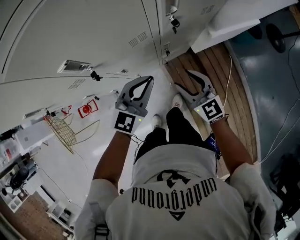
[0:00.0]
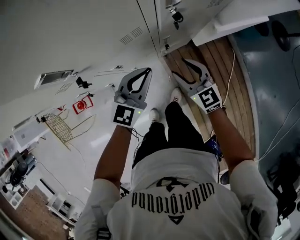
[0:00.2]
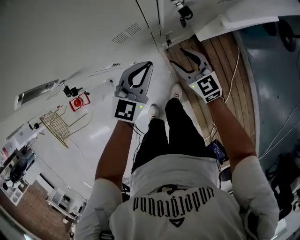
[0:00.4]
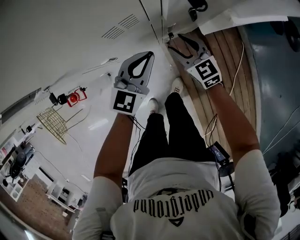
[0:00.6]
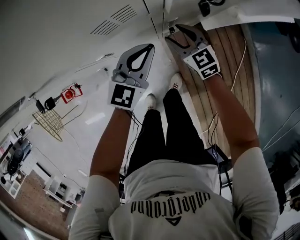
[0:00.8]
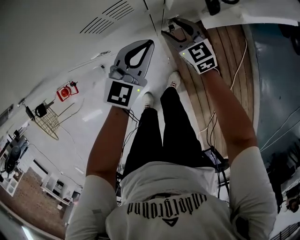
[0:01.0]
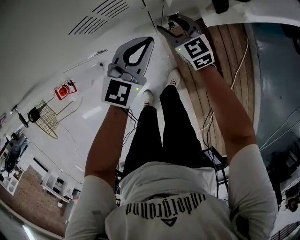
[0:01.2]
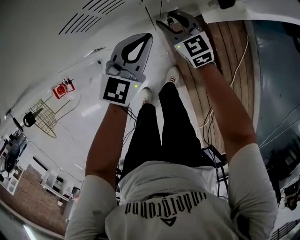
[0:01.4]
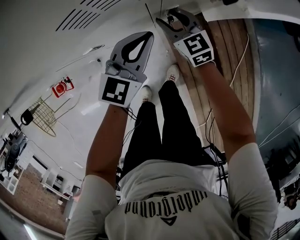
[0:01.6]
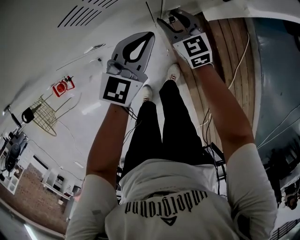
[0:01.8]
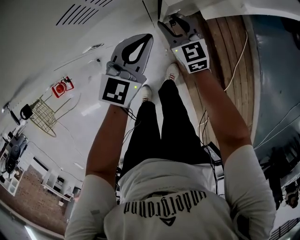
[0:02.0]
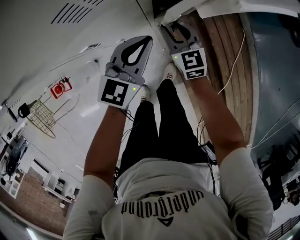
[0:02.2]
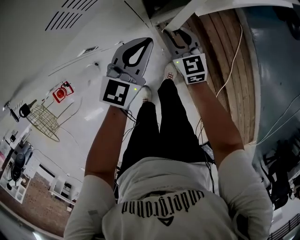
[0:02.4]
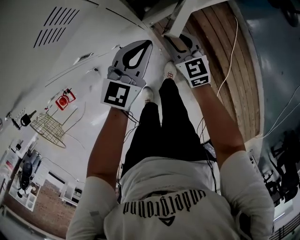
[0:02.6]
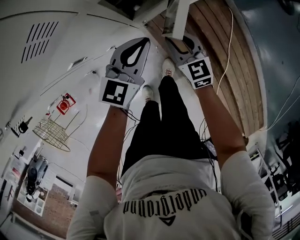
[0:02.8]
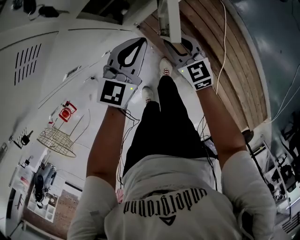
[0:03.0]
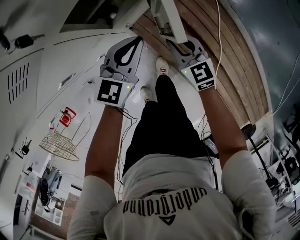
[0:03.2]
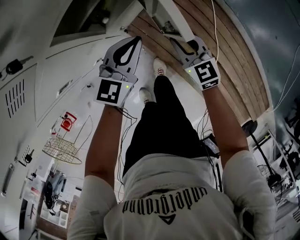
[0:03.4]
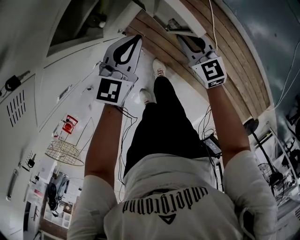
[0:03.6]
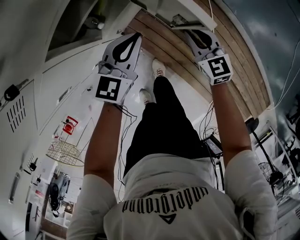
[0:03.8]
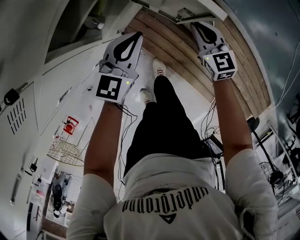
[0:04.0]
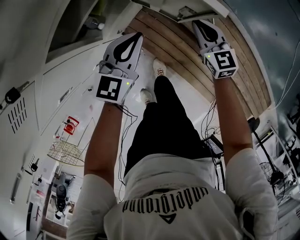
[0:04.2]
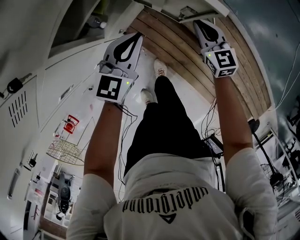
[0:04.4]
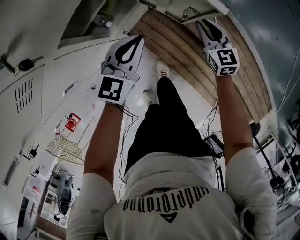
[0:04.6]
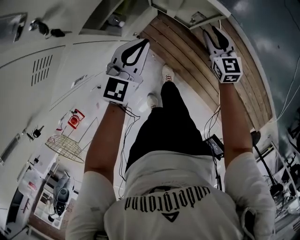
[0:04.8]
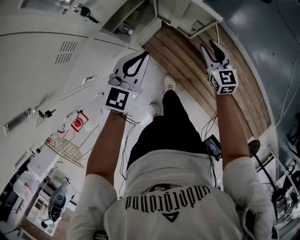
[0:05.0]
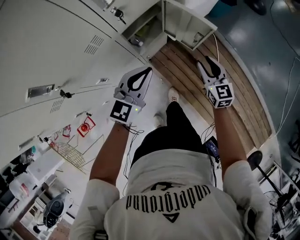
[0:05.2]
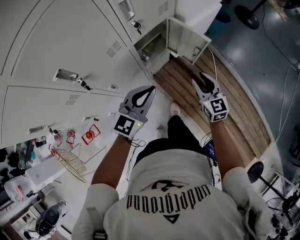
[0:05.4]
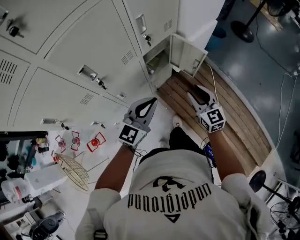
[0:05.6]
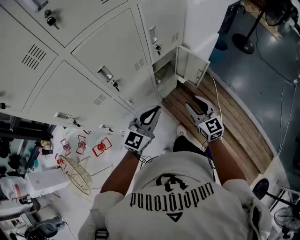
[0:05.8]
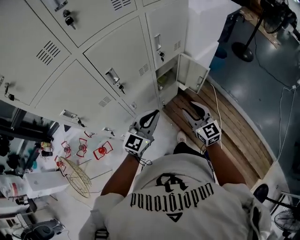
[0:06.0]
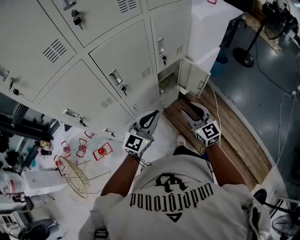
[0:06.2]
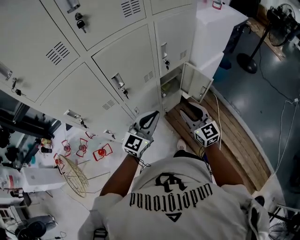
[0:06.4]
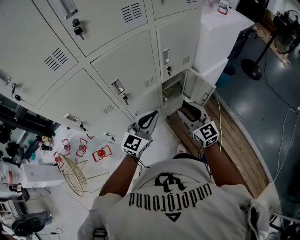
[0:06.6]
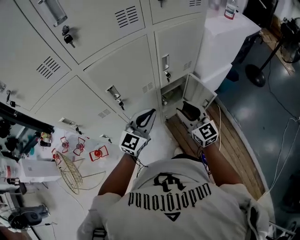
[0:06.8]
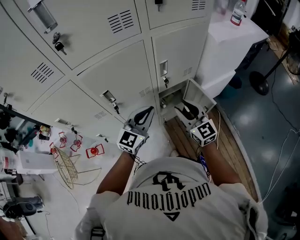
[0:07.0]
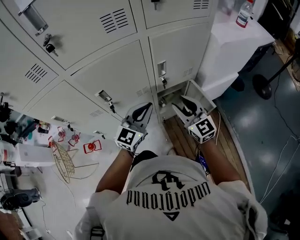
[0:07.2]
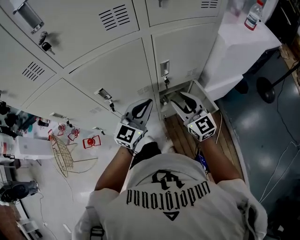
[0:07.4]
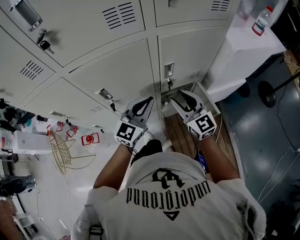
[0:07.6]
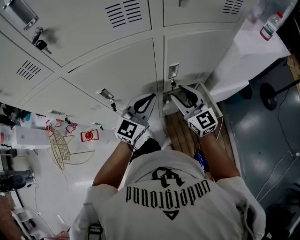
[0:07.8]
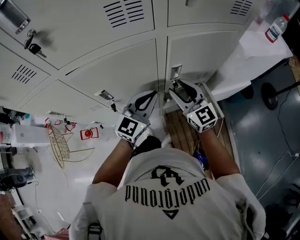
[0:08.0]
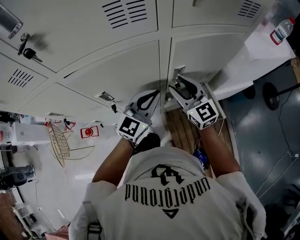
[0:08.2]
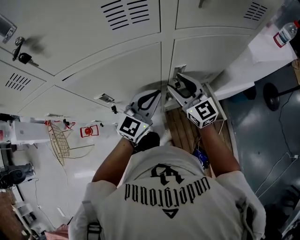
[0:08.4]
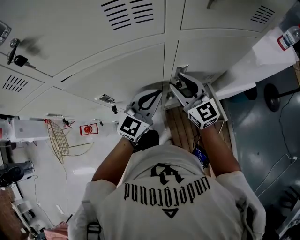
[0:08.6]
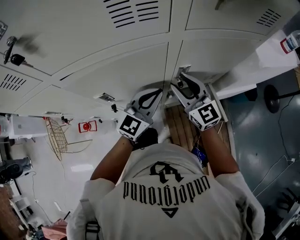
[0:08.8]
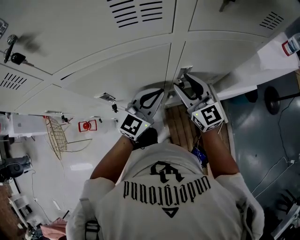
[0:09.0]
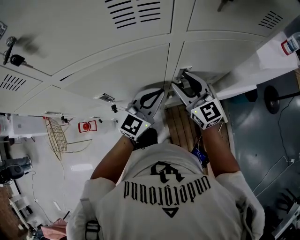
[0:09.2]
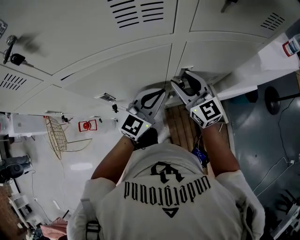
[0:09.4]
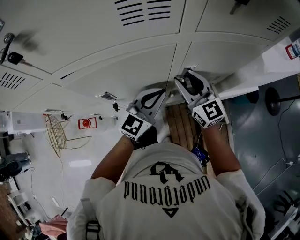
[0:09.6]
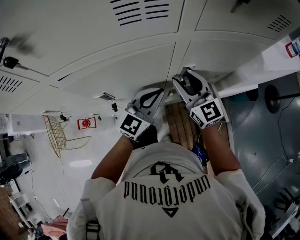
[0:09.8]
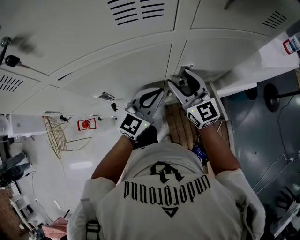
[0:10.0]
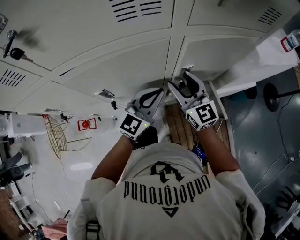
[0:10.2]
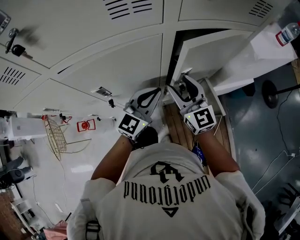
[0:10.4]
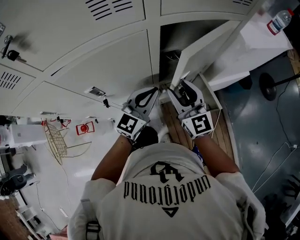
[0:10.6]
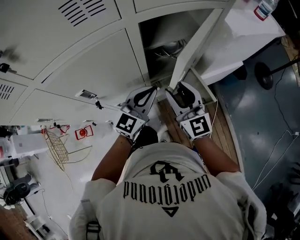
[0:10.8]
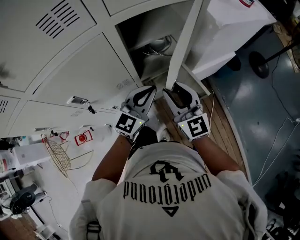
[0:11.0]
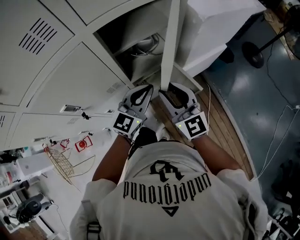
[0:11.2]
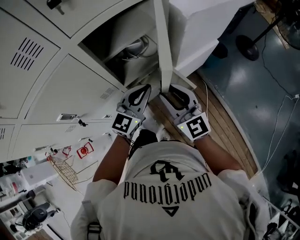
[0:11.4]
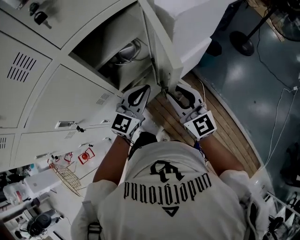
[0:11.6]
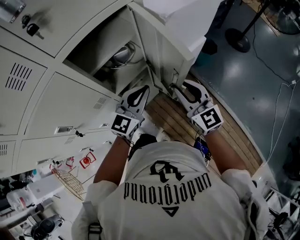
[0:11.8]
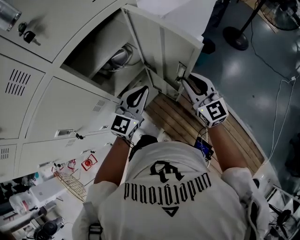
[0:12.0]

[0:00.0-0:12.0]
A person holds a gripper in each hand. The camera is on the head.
0:00.0 to 0:01.6: Both grippers move downward and forward, roughly 25 cm.
0:01.6 to 0:03.0: The left gripper moves to the right, about 15 cm. The right gripper heads to the right and backward, covering approximately 20 cm, and rotates roughly 20 degrees.
0:03.0 to 0:04.4: The left gripper moves to the right and forward, roughly 10 cm. The right gripper heads to the right and forward, covering approximately 20 cm, and closes its fingers.
0:04.4 to 0:06.0: The left gripper heads upward and backward, covering some 50 cm, and changes its angle by approximately 20 degrees, while the right gripper heads upward, backward and to the left, covering about 50 cm, swivels about 20 degrees, and opens up.
0:06.0 to 0:07.6: The two grippers go approximately 25 cm forward. The right gripper swivels some 30 degrees; the left gripper turns by some 20 degrees.
0:07.6 to 0:09.0: Both grippers move forward, about 10 cm.
0:09.0 to 0:10.4: The grippers move only a little.
0:10.4 to 0:12.0: Both grippers move to the right, about 25 cm. The right gripper swivels some 30 degrees, and closes up, while the left gripper swivels approximately 20 degrees.

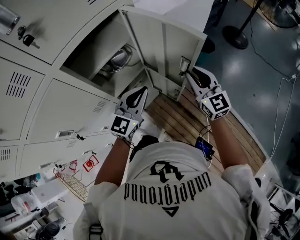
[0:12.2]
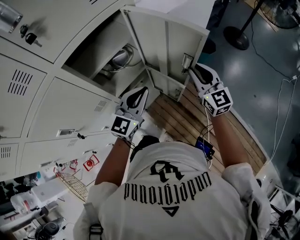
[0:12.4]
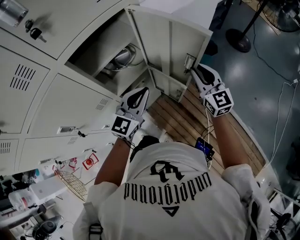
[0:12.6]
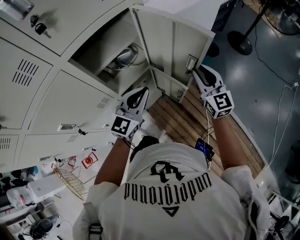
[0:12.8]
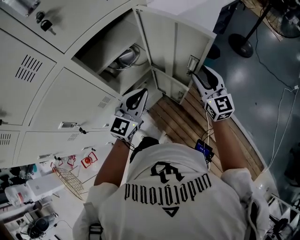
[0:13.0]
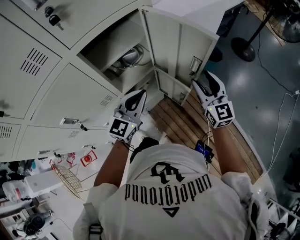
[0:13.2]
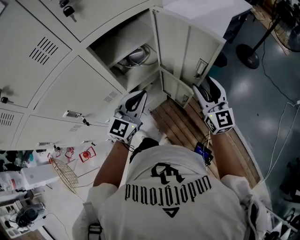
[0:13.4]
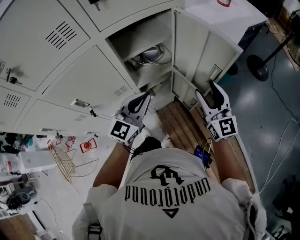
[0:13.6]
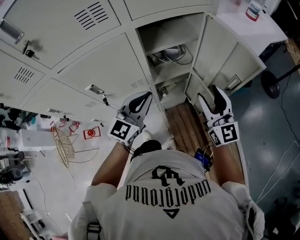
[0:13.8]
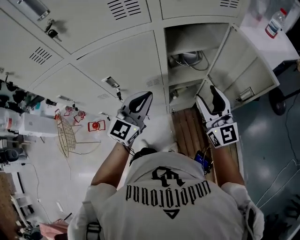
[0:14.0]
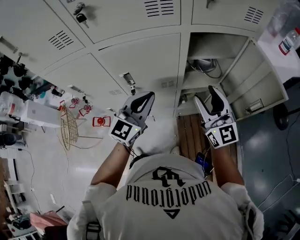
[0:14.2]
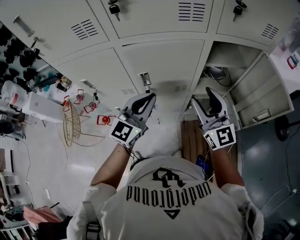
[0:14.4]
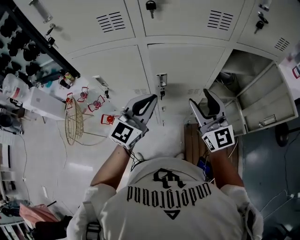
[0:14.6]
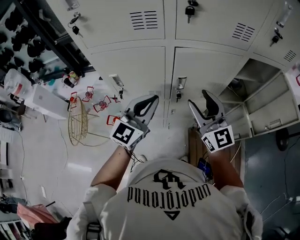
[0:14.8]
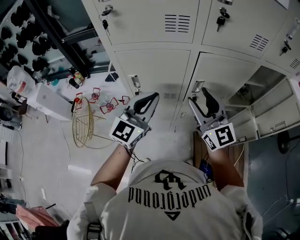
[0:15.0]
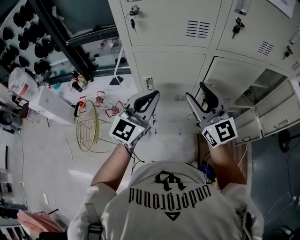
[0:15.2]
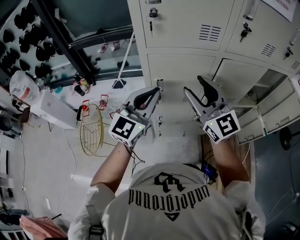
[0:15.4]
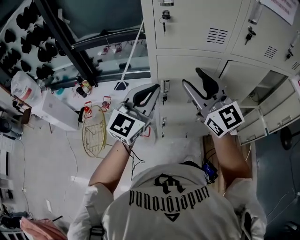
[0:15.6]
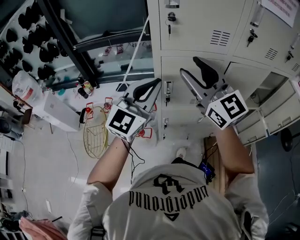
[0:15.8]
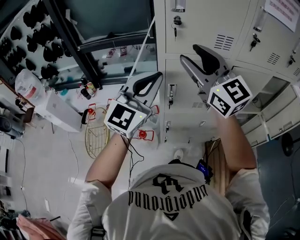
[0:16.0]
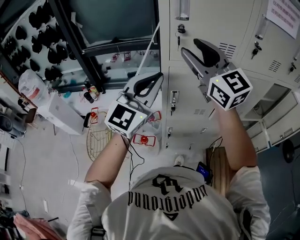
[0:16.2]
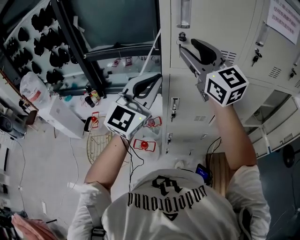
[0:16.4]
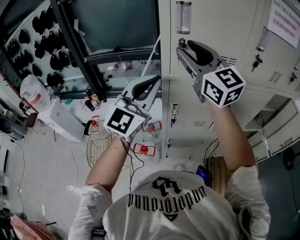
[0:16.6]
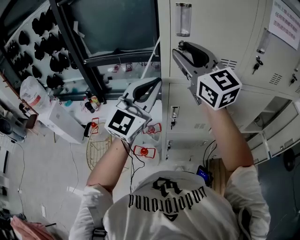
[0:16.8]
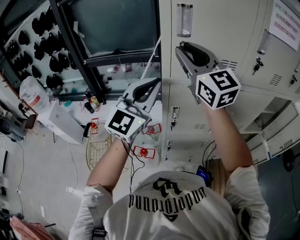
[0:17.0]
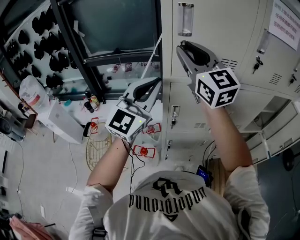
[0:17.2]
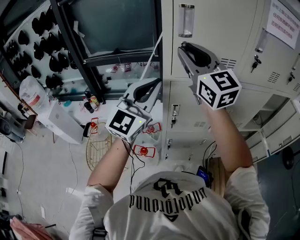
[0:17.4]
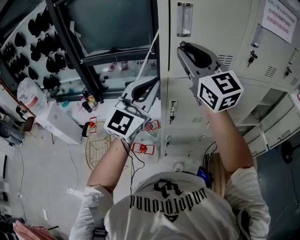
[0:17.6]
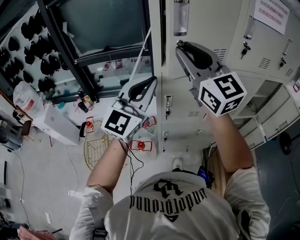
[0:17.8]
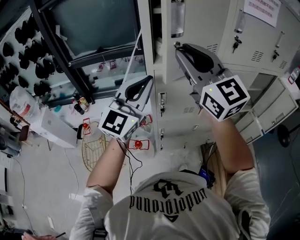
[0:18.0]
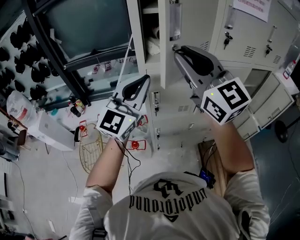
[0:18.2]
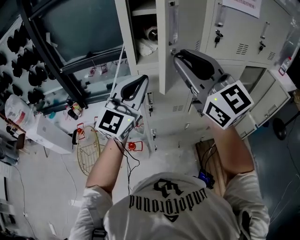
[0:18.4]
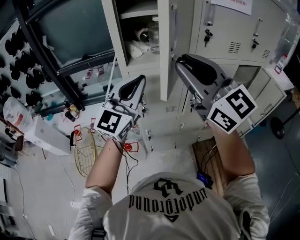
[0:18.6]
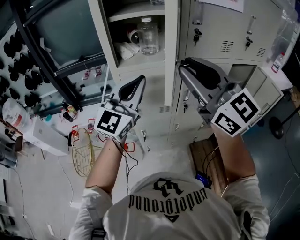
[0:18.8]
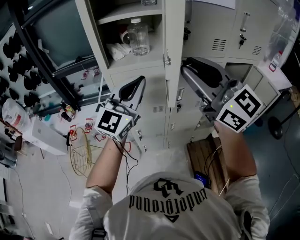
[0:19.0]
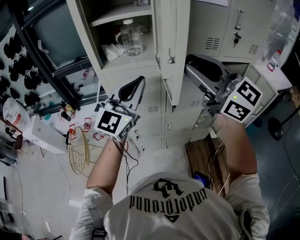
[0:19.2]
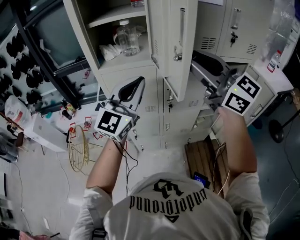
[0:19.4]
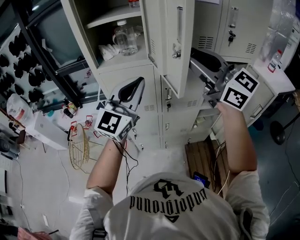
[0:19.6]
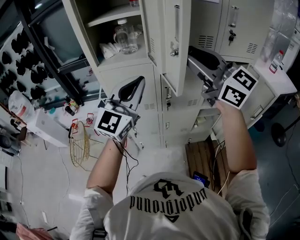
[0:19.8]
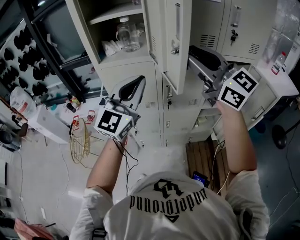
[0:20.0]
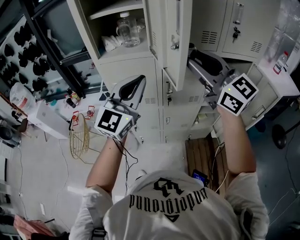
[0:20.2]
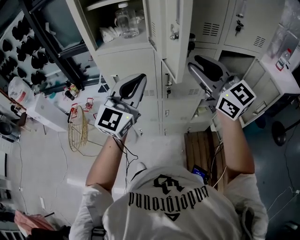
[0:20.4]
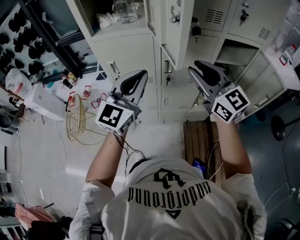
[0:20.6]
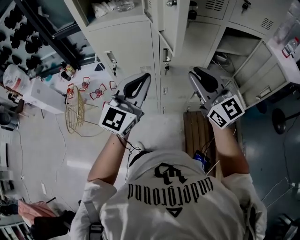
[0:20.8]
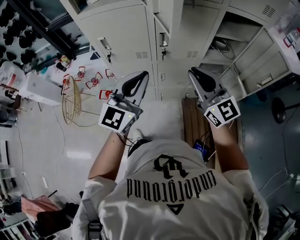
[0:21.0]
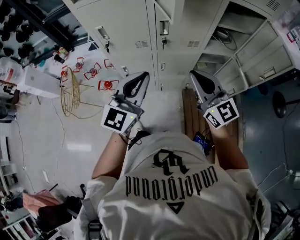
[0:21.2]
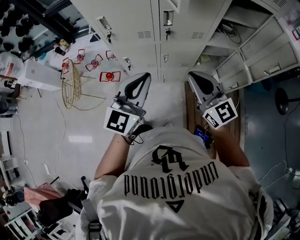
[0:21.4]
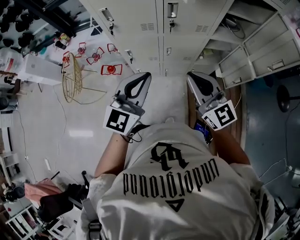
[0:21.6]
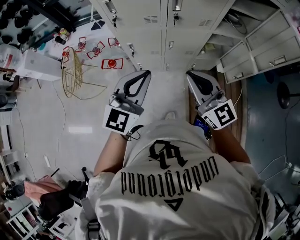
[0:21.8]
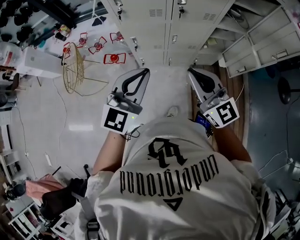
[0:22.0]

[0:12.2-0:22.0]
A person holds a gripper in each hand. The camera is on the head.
0:12.2 to 0:13.6: The right gripper travels backward and to the left by roughly 10 cm, and opens up; the left gripper is displaced to the left and backward by about 10 cm.
0:13.6 to 0:15.0: The two grippers travel together, roughly 50 cm. The left gripper turns by about 30 degrees. The right gripper swivels about 40 degrees.
0:15.0 to 0:16.4: The left gripper travels upward and to the left by some 25 cm; the right gripper travels to the left and upward by some 35 cm.
0:16.4 to 0:17.8: The right gripper moves about 5 cm.
0:17.8 to 0:19.2: The right gripper is displaced to the right and backward by approximately 25 cm. Meanwhile the left gripper is displaced to the right by approximately 20 cm.
0:19.2 to 0:20.6: The left gripper shifts approximately 10 cm downward and to the right. The right gripper moves downward and to the right, roughly 20 cm.
0:20.6 to 0:22.0: The left gripper goes about 25 cm backward and downward, while the right gripper shifts approximately 30 cm downward, backward and to the left, and closes its fingers.

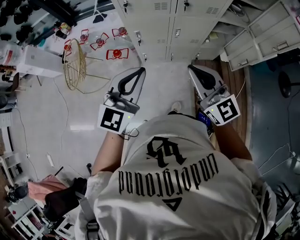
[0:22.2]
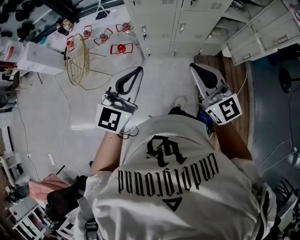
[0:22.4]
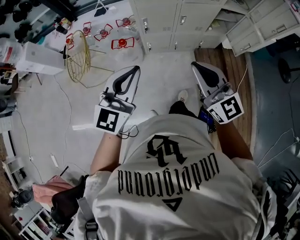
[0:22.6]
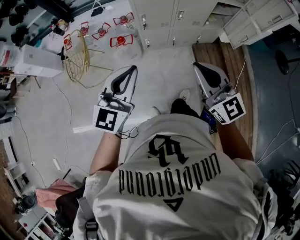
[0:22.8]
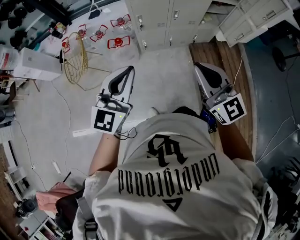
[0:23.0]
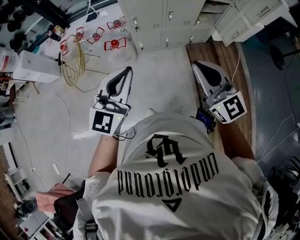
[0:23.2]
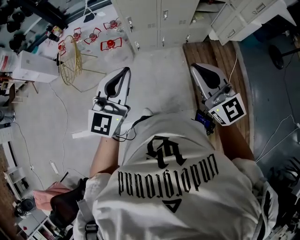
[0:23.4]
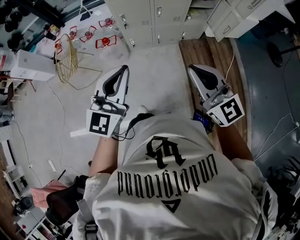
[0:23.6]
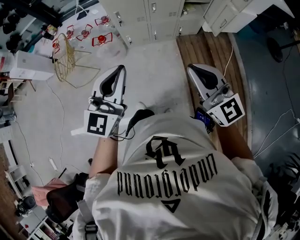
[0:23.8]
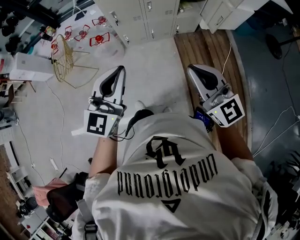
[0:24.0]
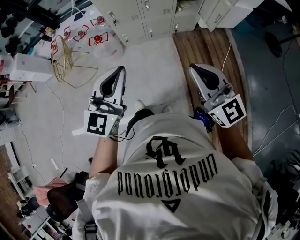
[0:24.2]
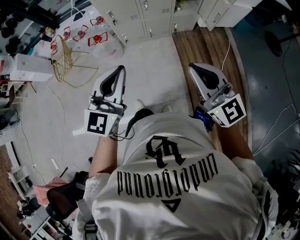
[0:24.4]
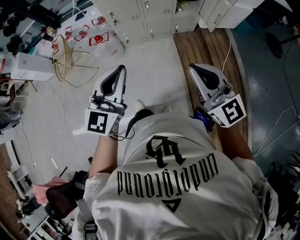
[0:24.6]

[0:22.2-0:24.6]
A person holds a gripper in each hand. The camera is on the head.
0:22.2 to 0:23.4: The two grippers go some 20 cm backward.
0:23.4 to 0:24.6: The two grippers go roughly 15 cm to the right and backward.
